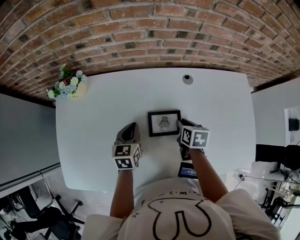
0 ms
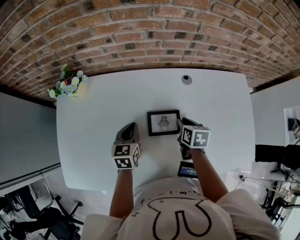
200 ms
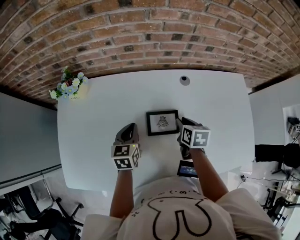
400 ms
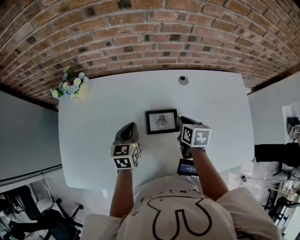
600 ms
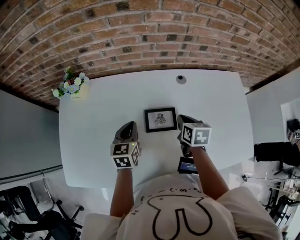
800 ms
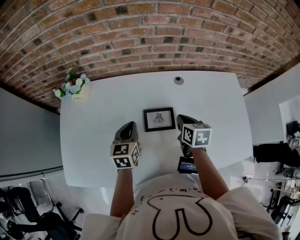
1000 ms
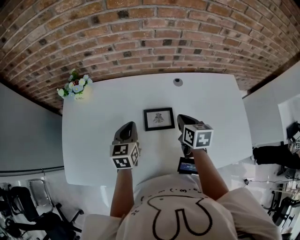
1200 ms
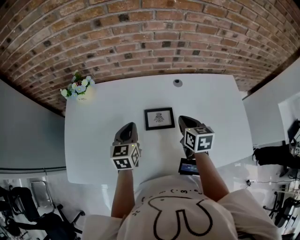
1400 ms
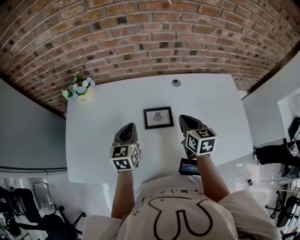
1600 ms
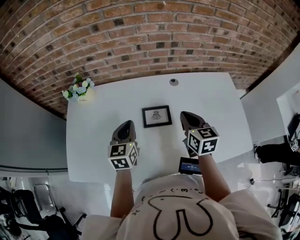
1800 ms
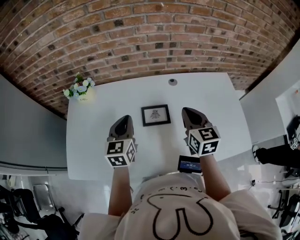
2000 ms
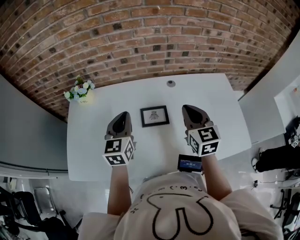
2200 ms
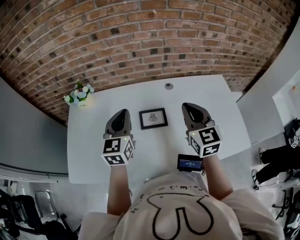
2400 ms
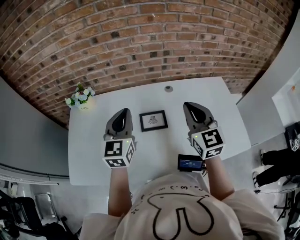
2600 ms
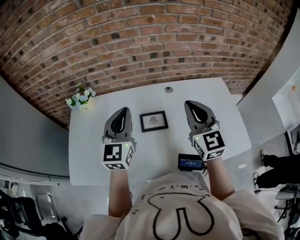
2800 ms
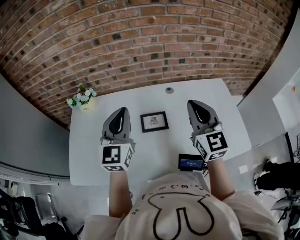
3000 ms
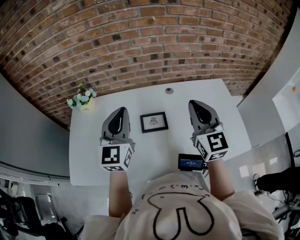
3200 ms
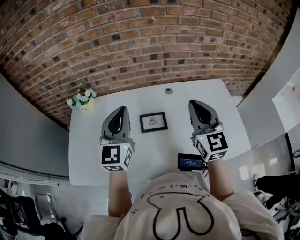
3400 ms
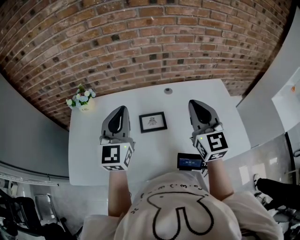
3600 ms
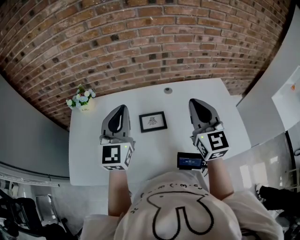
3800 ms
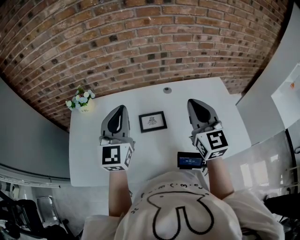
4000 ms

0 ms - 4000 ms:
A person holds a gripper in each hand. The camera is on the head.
0 ms - 1400 ms: The left gripper is displaced upward and backward by roughly 10 cm; the right gripper moves upward, approximately 10 cm, and swivels approximately 20 degrees.
1400 ms - 2600 ms: The two grippers go some 15 cm upward. The right gripper points its fingers roughly 30 degrees further upward. The left gripper rotates roughly 30 degrees.
2600 ms - 4000 ms: The left gripper shifts approximately 5 cm upward.

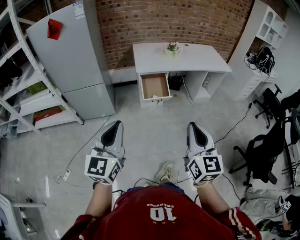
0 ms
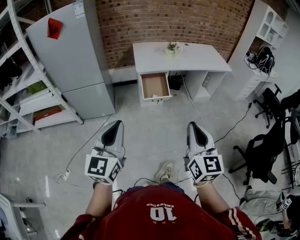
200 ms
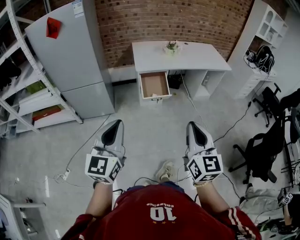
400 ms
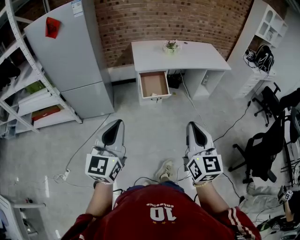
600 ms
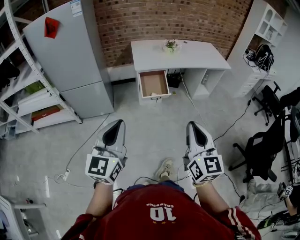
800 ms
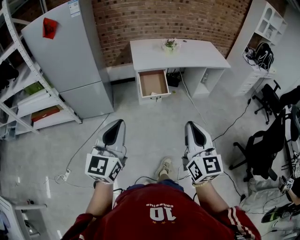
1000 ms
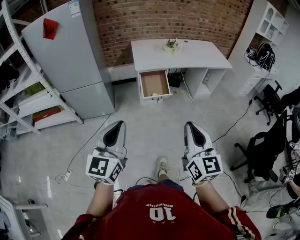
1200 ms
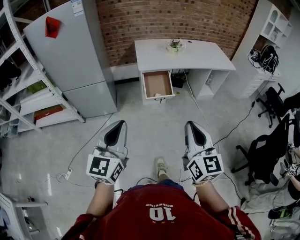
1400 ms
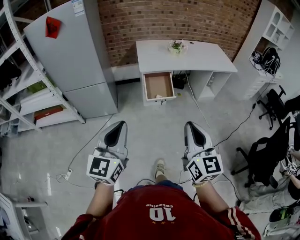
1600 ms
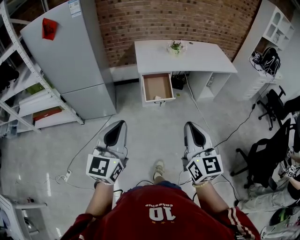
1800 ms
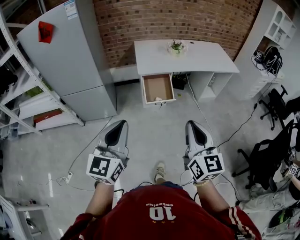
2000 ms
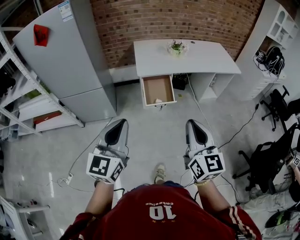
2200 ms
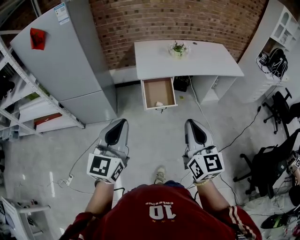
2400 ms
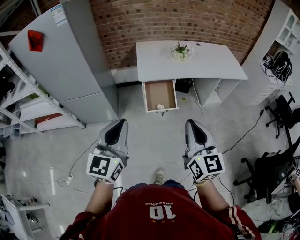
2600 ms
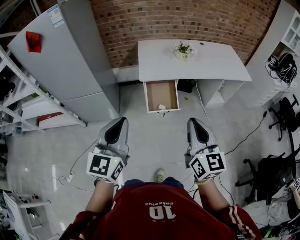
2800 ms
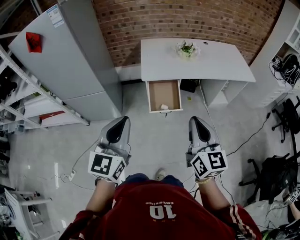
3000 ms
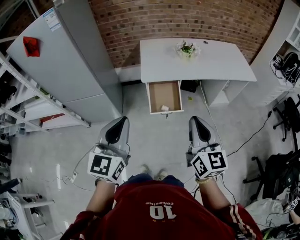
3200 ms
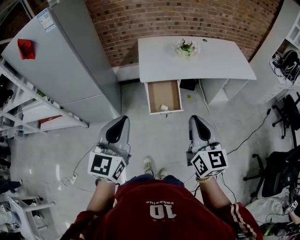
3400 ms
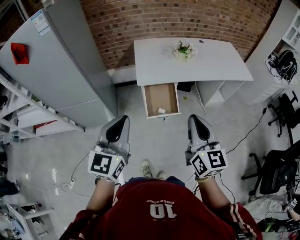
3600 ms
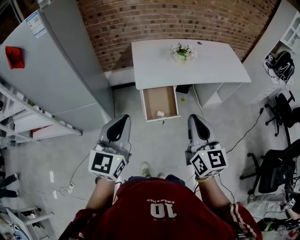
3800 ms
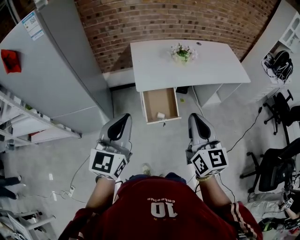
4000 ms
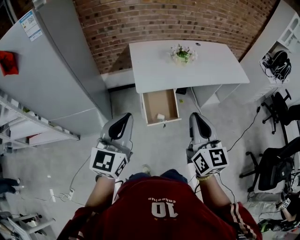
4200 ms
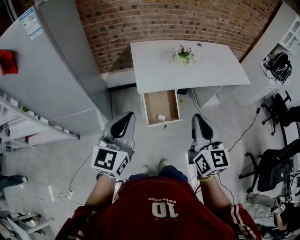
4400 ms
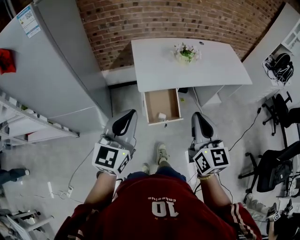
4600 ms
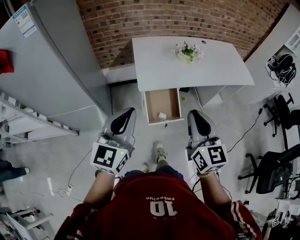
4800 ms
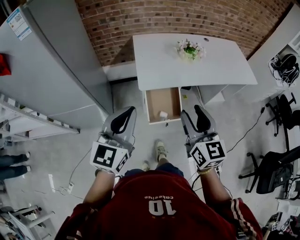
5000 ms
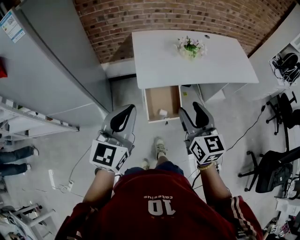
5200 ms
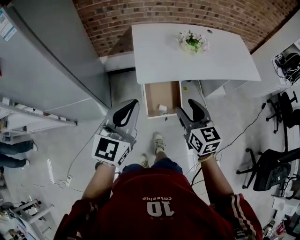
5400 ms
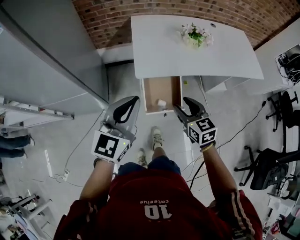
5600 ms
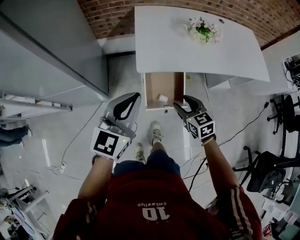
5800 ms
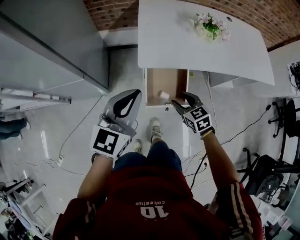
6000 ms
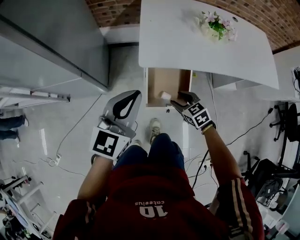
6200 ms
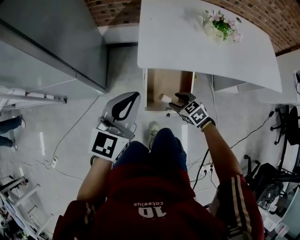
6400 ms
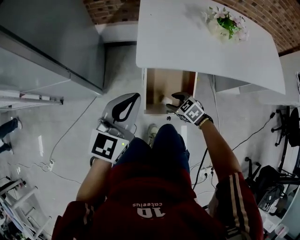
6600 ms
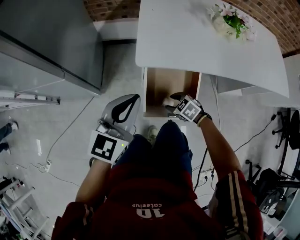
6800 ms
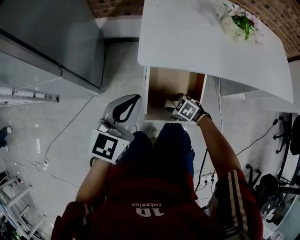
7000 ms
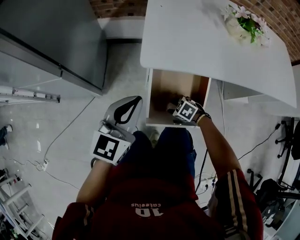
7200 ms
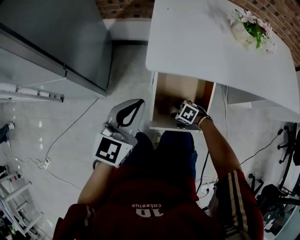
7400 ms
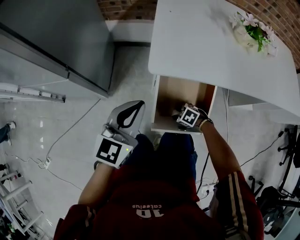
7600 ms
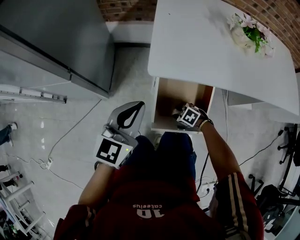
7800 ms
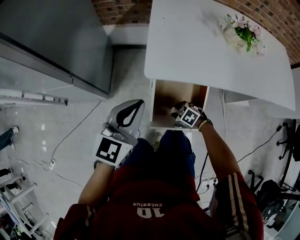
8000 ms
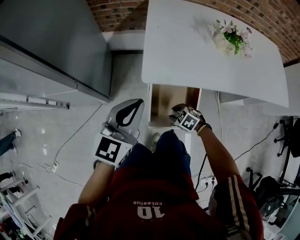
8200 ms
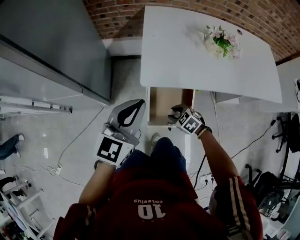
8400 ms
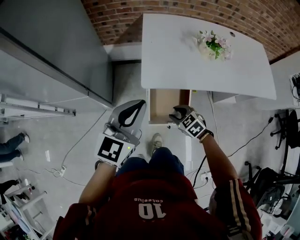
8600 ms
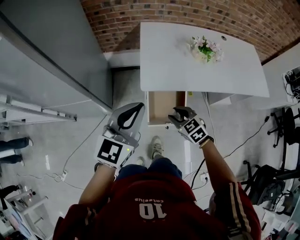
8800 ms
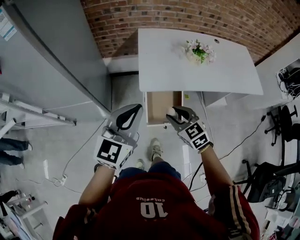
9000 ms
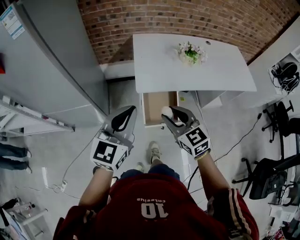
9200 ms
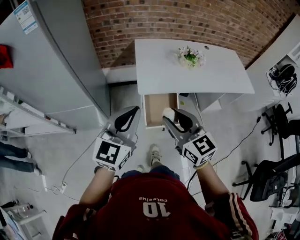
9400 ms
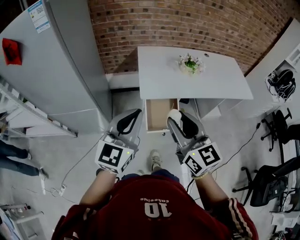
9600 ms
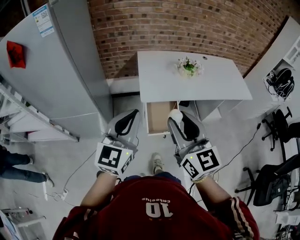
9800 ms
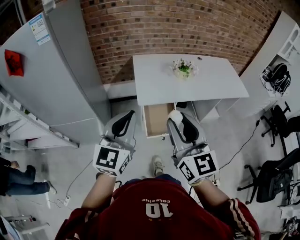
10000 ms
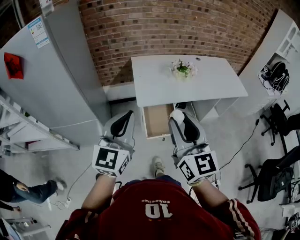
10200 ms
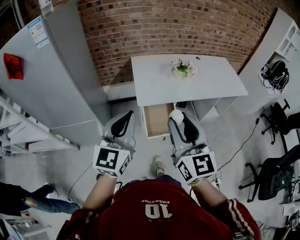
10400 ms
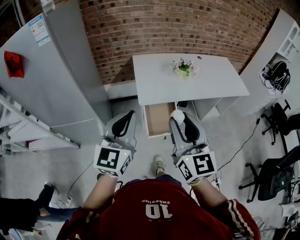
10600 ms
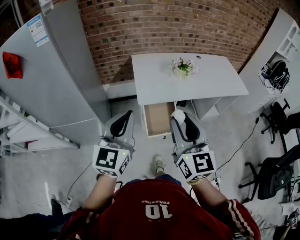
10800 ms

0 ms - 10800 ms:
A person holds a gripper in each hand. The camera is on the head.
0 ms - 1600 ms: The right gripper moves roughly 5 cm.
1600 ms - 3000 ms: The grippers both shift forward by about 25 cm.
3000 ms - 4600 ms: The left gripper moves forward, roughly 20 cm; the right gripper goes approximately 15 cm forward and to the left.
4600 ms - 6200 ms: The right gripper moves downward and forward, roughly 50 cm, tilts its fingers some 40 degrees downward, and opens; the left gripper heads downward and forward, covering about 20 cm.
6200 ms - 7800 ms: Both grippers travel together downward, about 25 cm. The right gripper turns by some 40 degrees.
7800 ms - 9200 ms: The right gripper goes some 60 cm upward, and tilts its fingers about 50 degrees upward. Meanwhile the left gripper travels upward by some 35 cm.
9200 ms - 10800 ms: The right gripper shifts roughly 20 cm upward and backward, and swivels approximately 40 degrees. Meanwhile the left gripper travels upward and backward by some 10 cm.

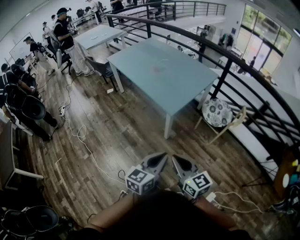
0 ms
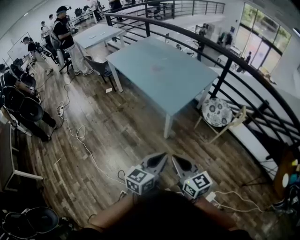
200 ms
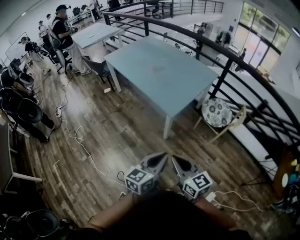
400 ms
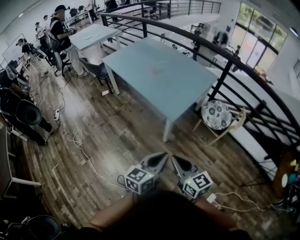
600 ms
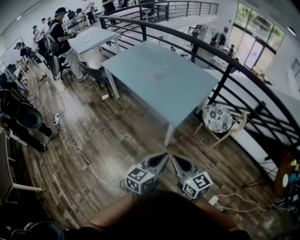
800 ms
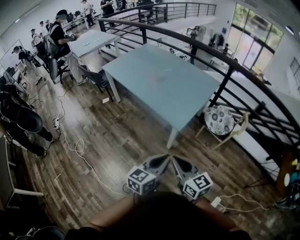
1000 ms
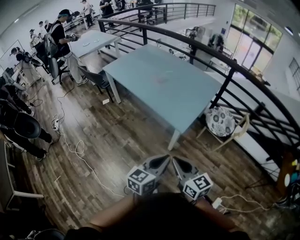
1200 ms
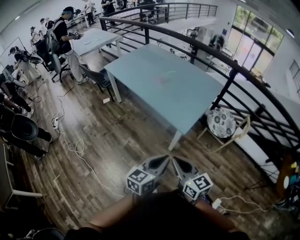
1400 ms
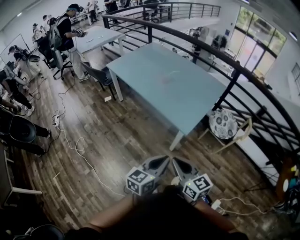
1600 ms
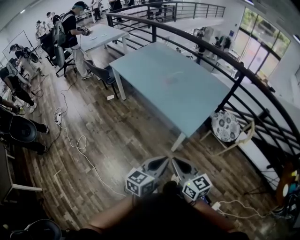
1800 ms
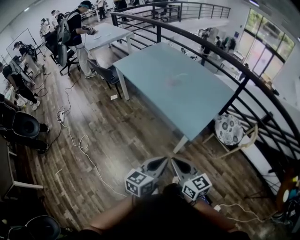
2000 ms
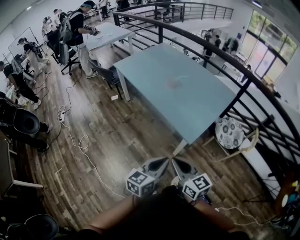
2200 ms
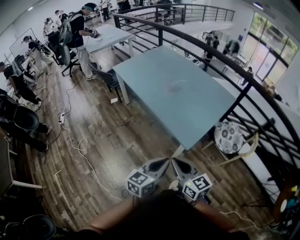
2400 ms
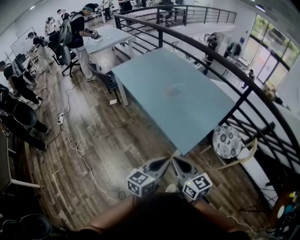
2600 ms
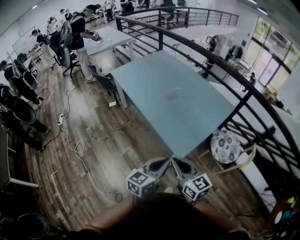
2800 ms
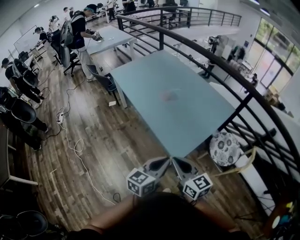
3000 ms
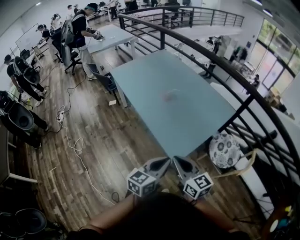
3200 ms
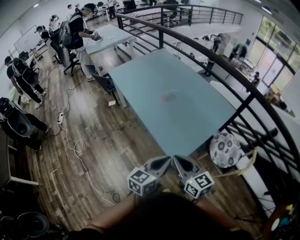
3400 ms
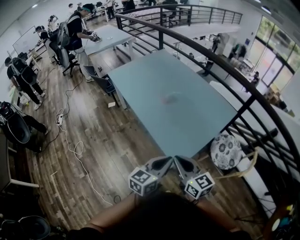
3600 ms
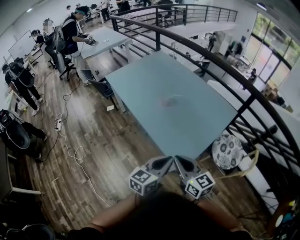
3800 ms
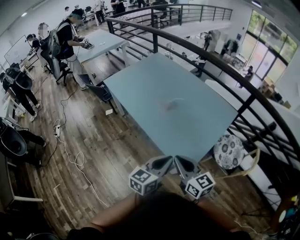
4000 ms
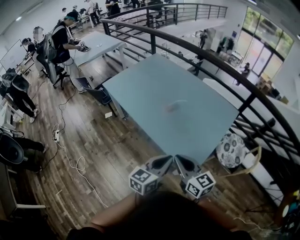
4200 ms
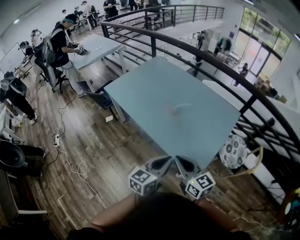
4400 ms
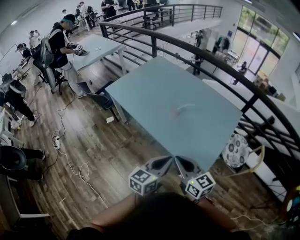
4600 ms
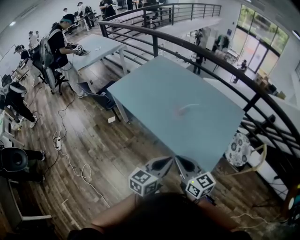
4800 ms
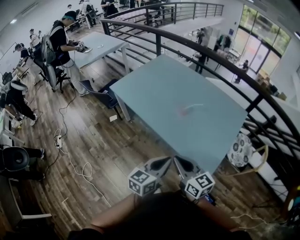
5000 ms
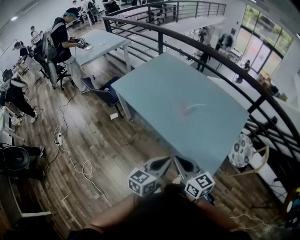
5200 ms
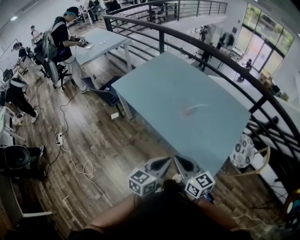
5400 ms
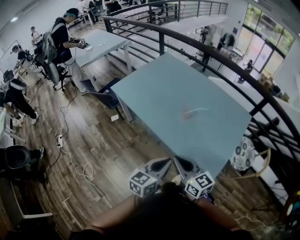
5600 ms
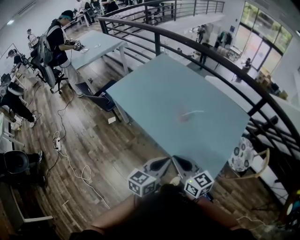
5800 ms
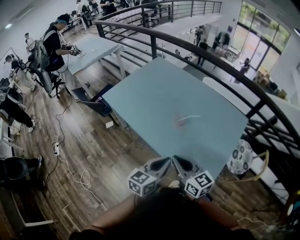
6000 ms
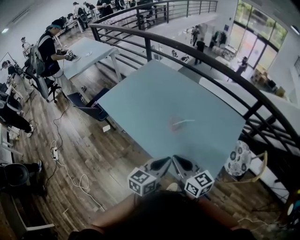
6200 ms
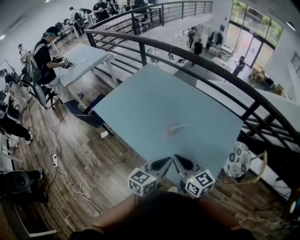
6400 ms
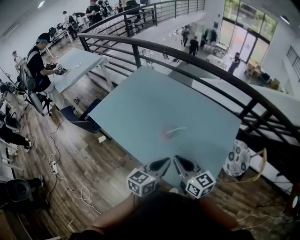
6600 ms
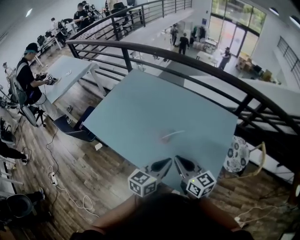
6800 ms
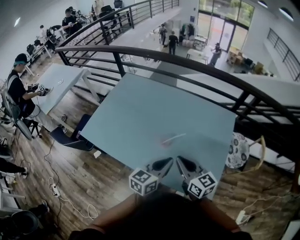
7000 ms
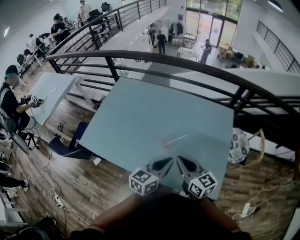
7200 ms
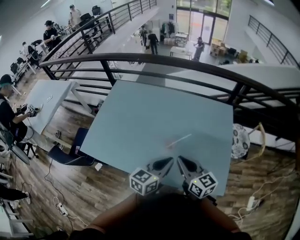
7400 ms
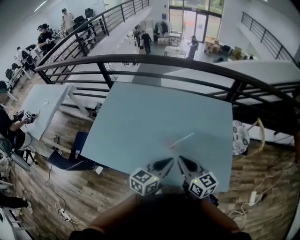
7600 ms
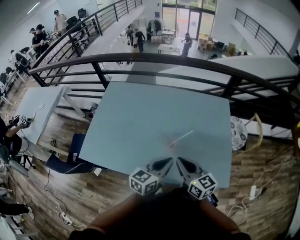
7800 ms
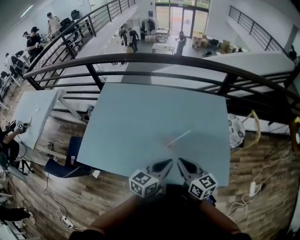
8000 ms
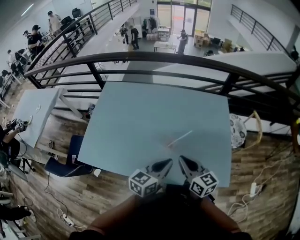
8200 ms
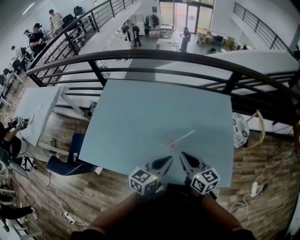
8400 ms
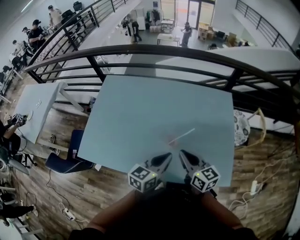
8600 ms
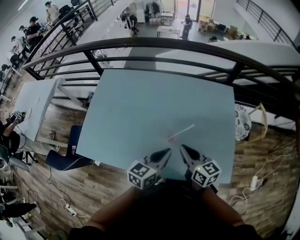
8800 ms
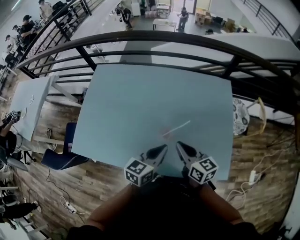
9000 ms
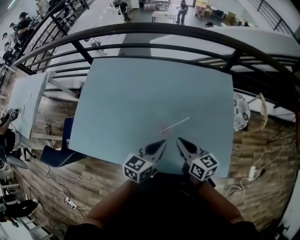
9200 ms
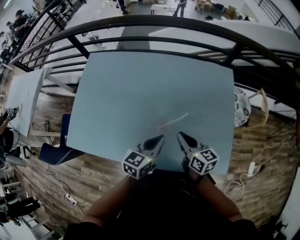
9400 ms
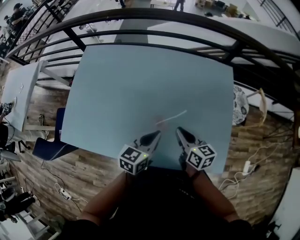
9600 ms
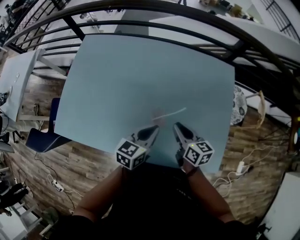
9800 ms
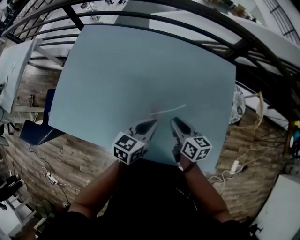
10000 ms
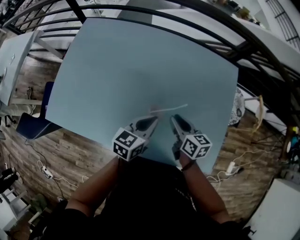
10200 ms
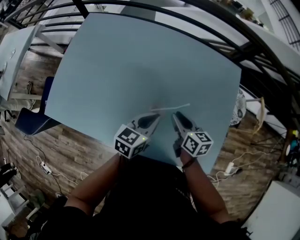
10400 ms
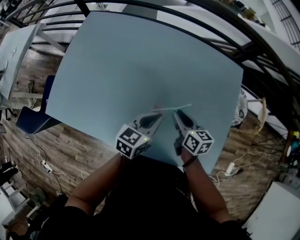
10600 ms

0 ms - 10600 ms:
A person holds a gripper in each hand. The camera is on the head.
0 ms - 1600 ms: The grippers both shift to the left and forward by approximately 20 cm.
1600 ms - 3000 ms: The grippers both shift forward and to the right by about 20 cm.
3000 ms - 4600 ms: The two grippers go some 25 cm to the left and forward.
4600 ms - 6000 ms: The two grippers go roughly 10 cm forward.
6000 ms - 7600 ms: The left gripper shifts by about 20 cm, and rotates some 30 degrees; the right gripper ends up approximately 20 cm from where it was, and rotates approximately 30 degrees.
7600 ms - 9000 ms: The right gripper moves downward and forward, some 10 cm; the left gripper shifts some 10 cm forward and downward.
9000 ms - 10600 ms: The grippers both shift downward and forward by some 15 cm.
